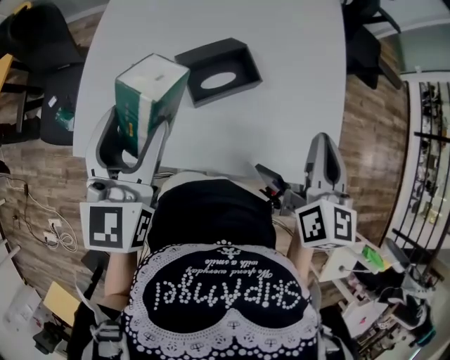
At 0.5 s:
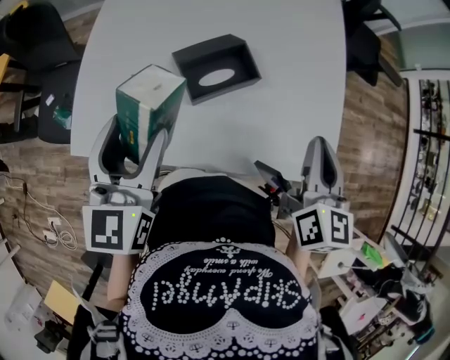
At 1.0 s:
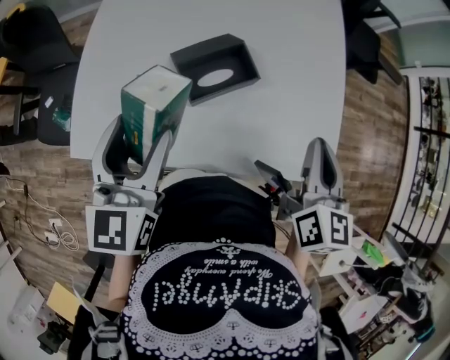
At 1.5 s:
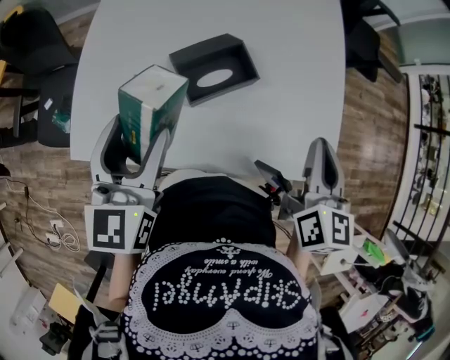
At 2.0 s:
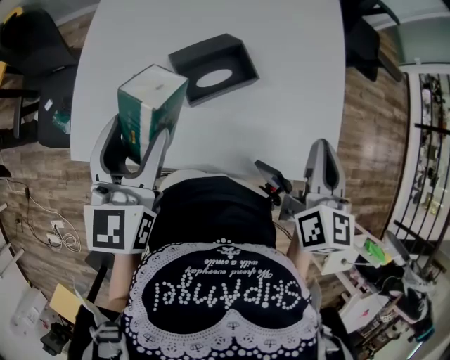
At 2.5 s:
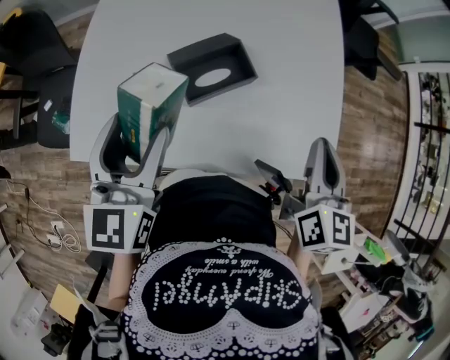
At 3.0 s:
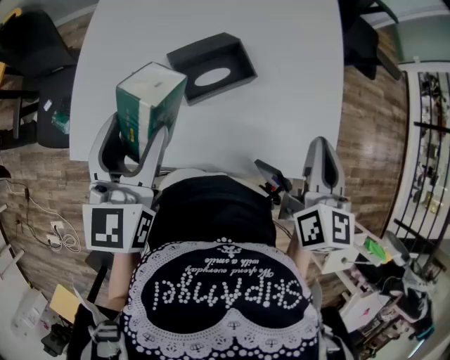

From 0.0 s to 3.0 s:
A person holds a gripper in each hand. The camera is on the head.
From 0.0 s to 1.5 s: The grippers make only small movements.
From 1.5 s to 3.0 s: Both grippers stay about where they are.

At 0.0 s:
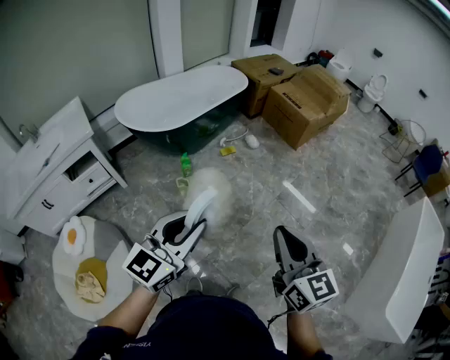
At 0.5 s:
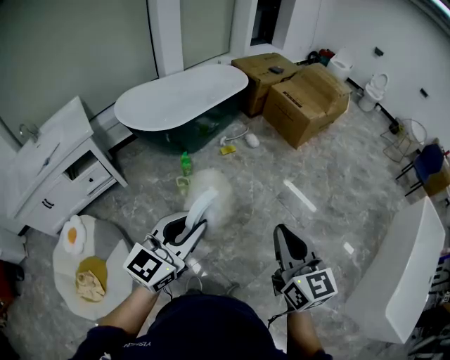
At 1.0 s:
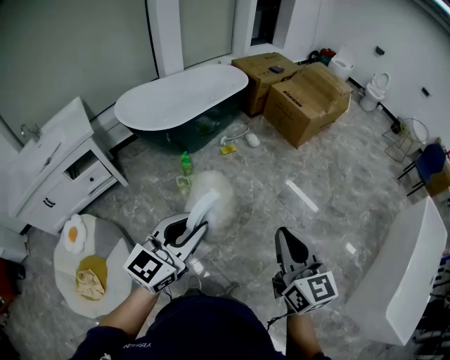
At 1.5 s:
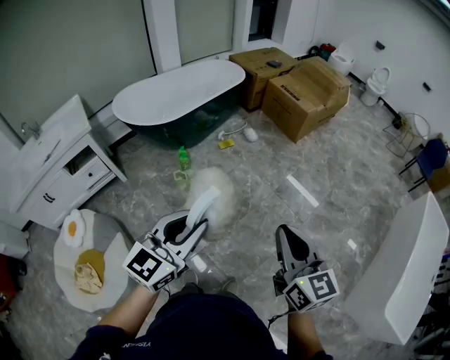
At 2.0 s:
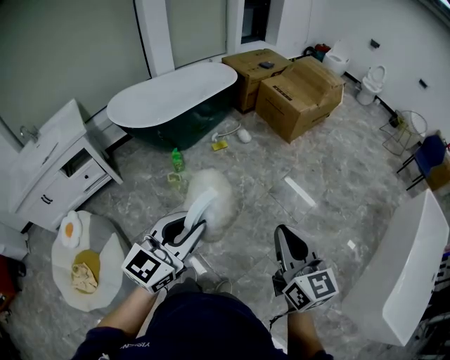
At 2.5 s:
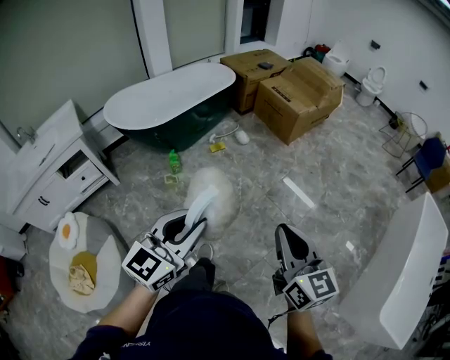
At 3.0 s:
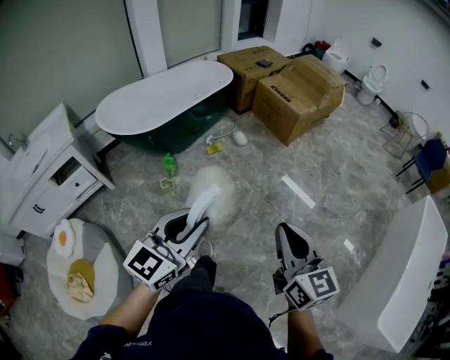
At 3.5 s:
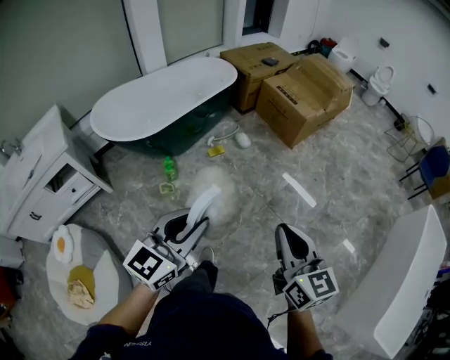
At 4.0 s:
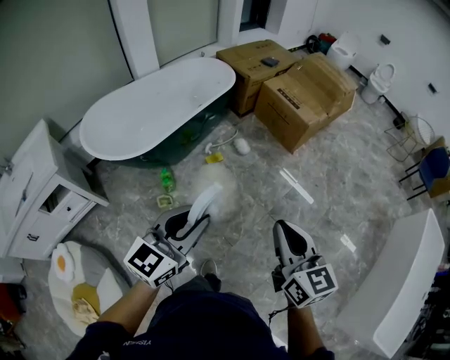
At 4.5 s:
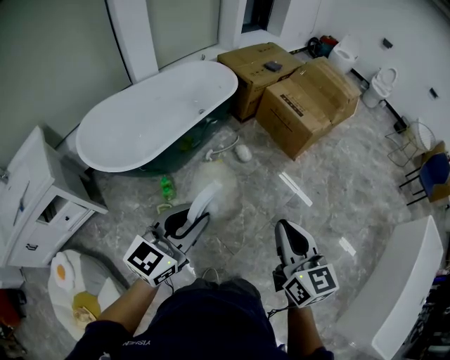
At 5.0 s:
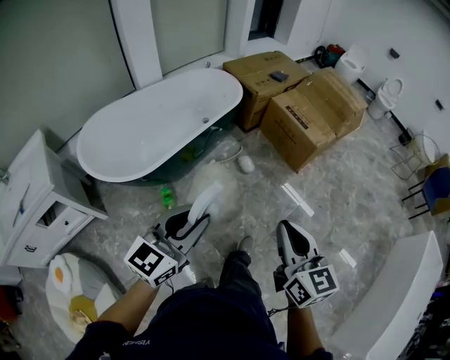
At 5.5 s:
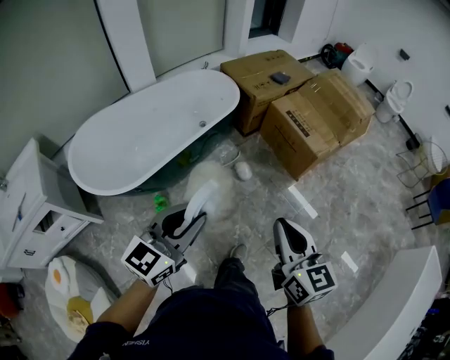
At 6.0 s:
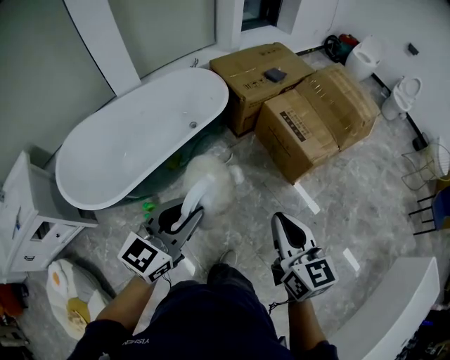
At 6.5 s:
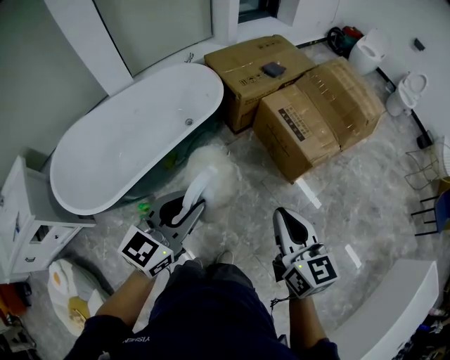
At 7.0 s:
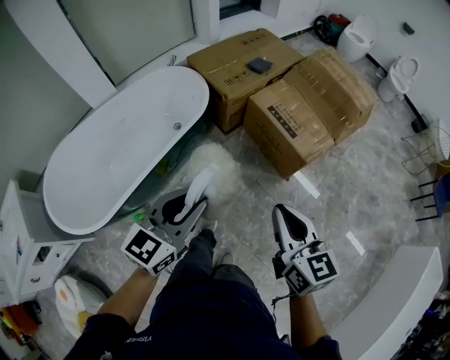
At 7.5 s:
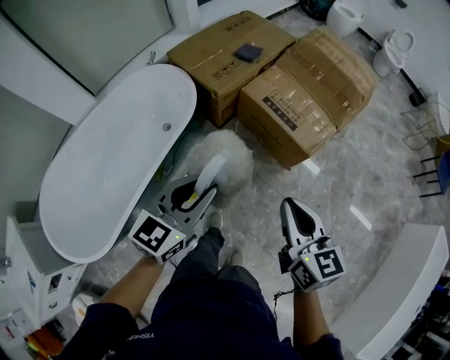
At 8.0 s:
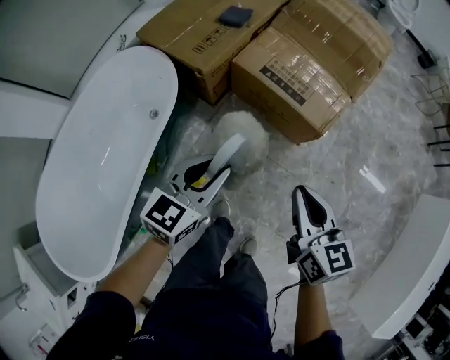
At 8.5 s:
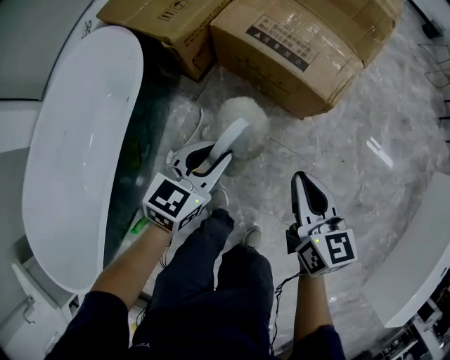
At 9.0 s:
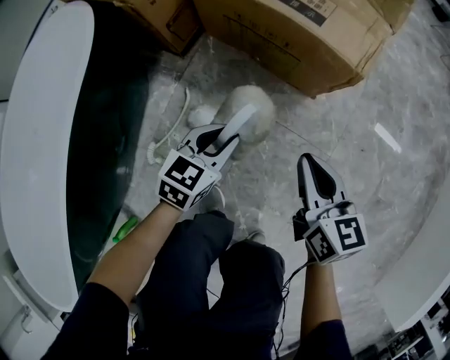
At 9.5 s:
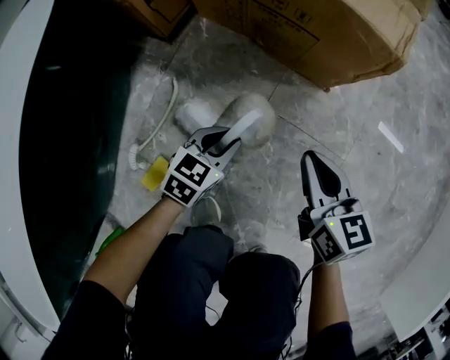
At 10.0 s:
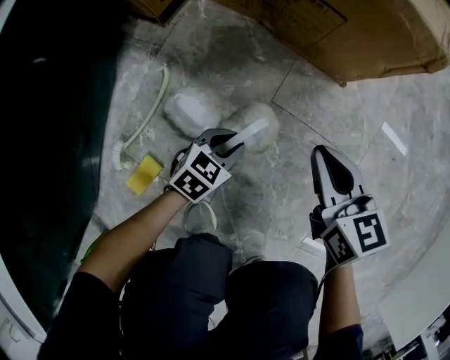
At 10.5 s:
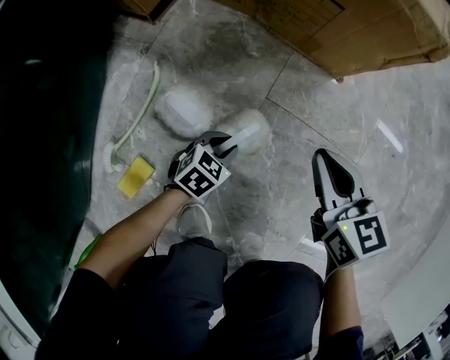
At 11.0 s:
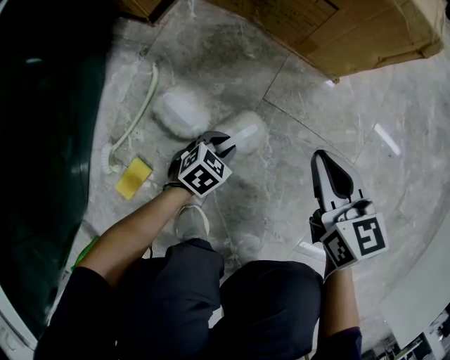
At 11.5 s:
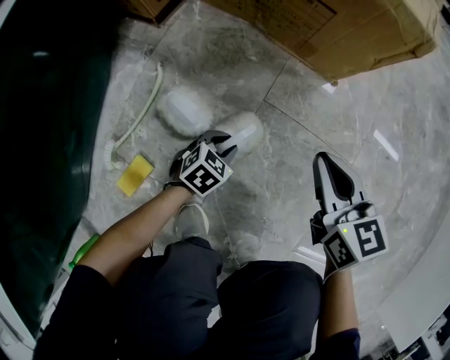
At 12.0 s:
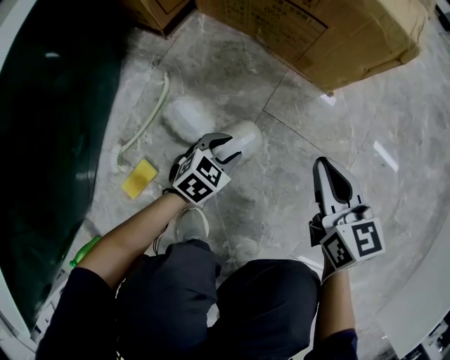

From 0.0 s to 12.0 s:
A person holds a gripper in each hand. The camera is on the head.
From 0.0 s to 2.0 s: Both grippers move to the right, roughly 15 cm.
From 2.0 s to 4.0 s: The two grippers go about 35 cm forward.
From 4.0 s to 6.0 s: Both grippers travel together forward, some 40 cm.
From 6.0 s to 8.0 s: The two grippers go about 40 cm forward and downward. The left gripper rotates approximately 30 degrees. Meanwhile the right gripper rotates some 30 degrees.
From 8.0 s to 10.0 s: The two grippers go about 70 cm downward. The left gripper swivels some 30 degrees.
From 10.0 s to 12.0 s: The left gripper moves approximately 5 cm downward and comes back.

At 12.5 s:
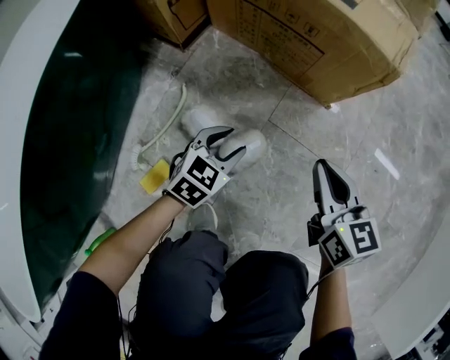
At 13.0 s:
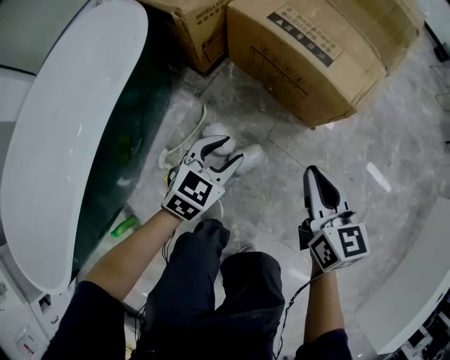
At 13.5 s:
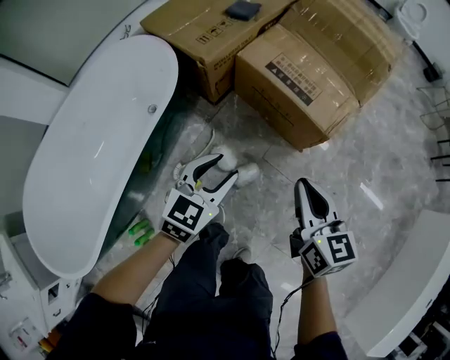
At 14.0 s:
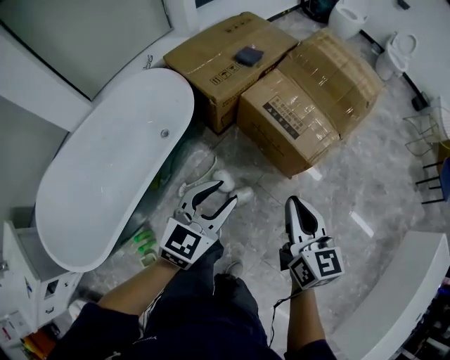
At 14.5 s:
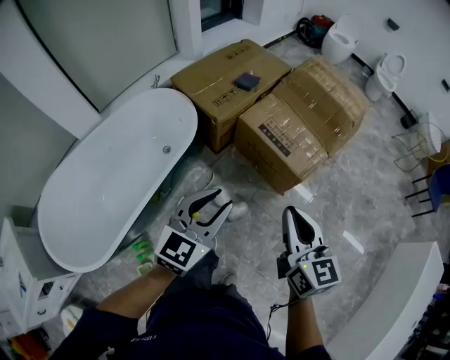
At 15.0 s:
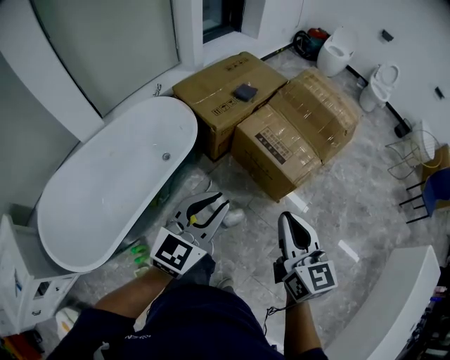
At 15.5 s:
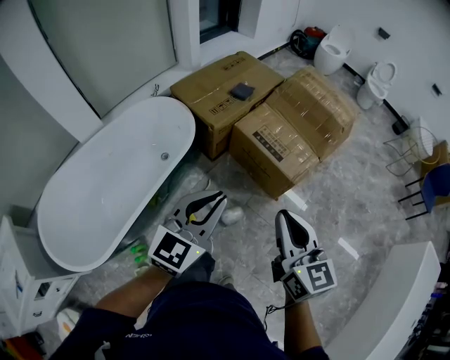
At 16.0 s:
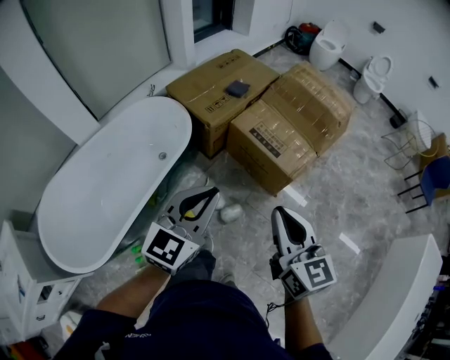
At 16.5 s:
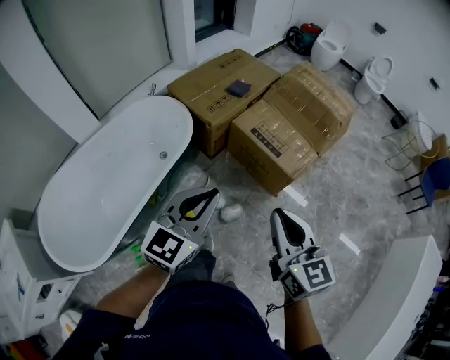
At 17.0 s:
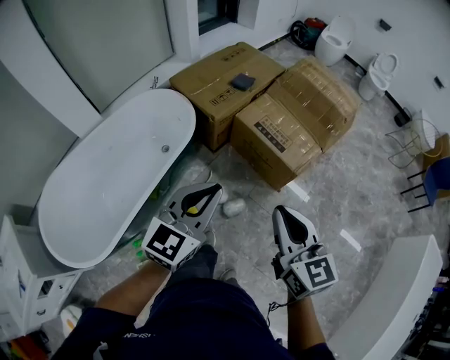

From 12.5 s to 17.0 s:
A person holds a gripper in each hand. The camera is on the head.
From 12.5 s to 14.5 s: The grippers both shift upward by some 70 cm. The left gripper swivels approximately 30 degrees.
From 14.5 s to 17.0 s: The left gripper ends up approximately 5 cm from where it was, and closes up. Meanwhile the right gripper goes roughly 5 cm backward.

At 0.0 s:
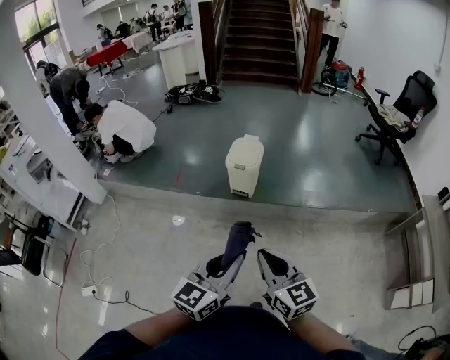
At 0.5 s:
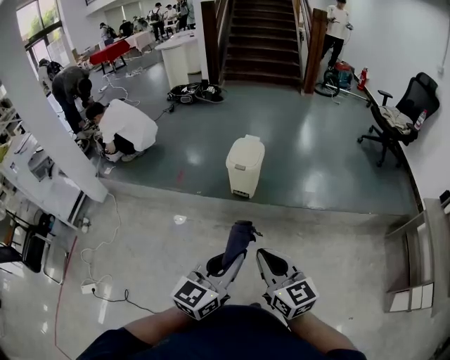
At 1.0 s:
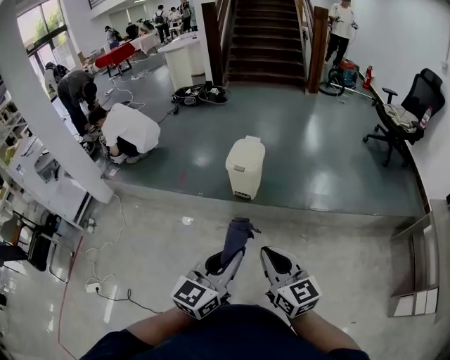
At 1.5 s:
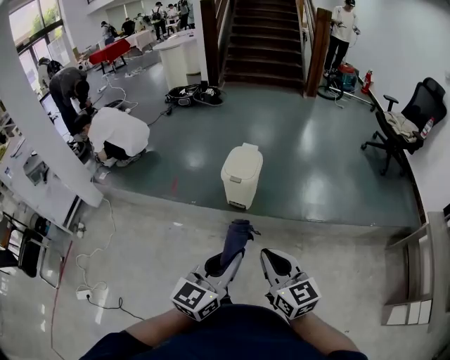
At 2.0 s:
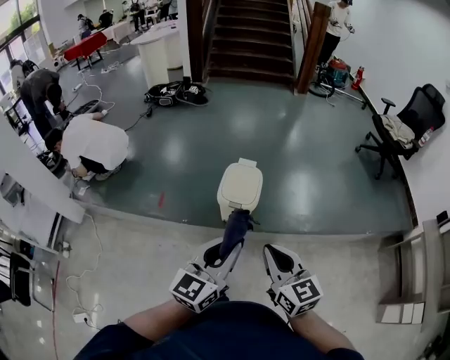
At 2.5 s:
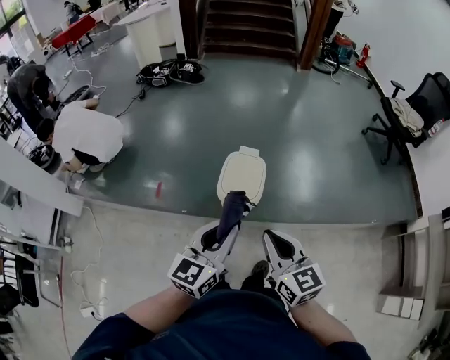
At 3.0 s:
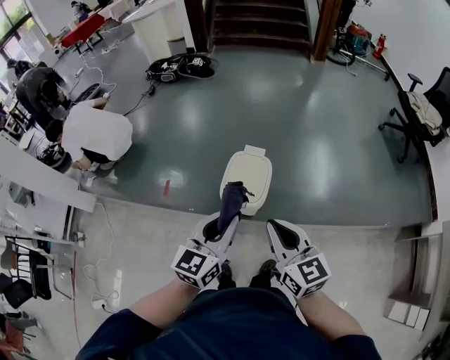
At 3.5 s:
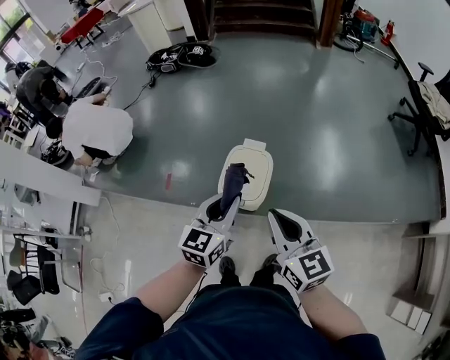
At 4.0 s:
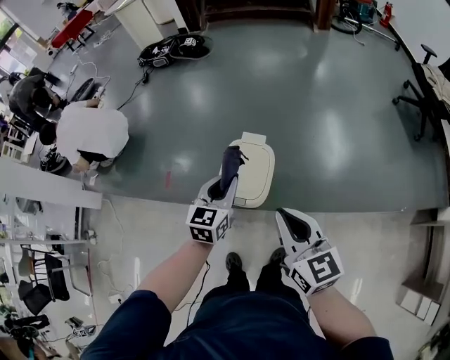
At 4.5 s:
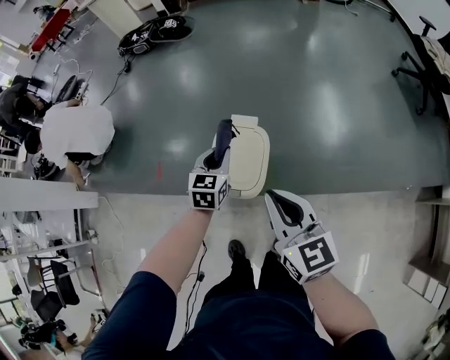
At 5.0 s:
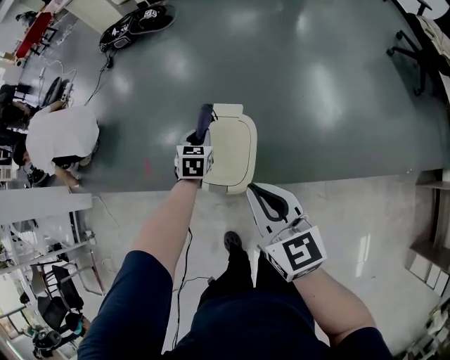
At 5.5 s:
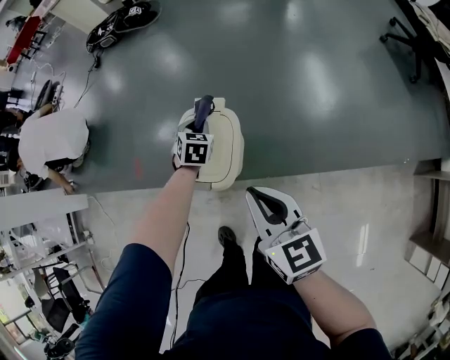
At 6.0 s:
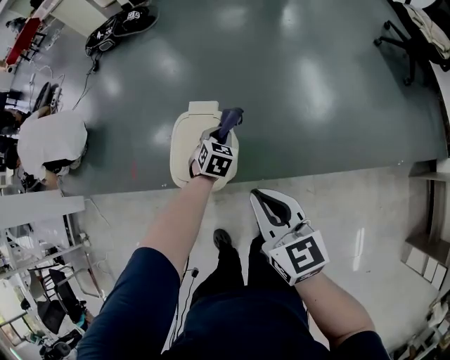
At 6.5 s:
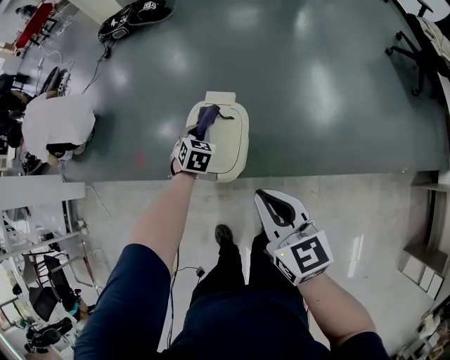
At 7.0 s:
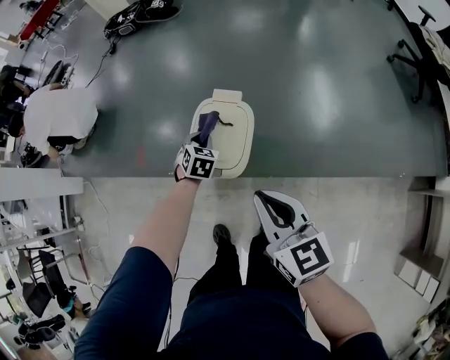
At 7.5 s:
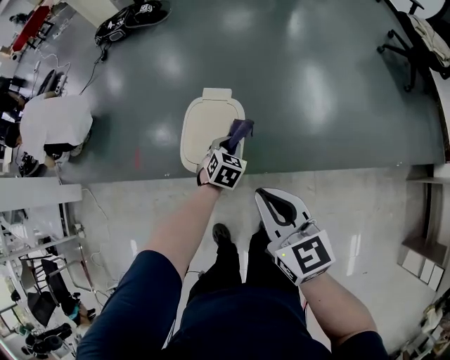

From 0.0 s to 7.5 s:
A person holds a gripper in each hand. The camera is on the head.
From 0.0 s to 2.0 s: The grippers both shift forward by roughly 35 cm.
From 2.0 s to 4.0 s: The left gripper shifts roughly 40 cm forward and downward, and changes its angle by some 30 degrees. Meanwhile the right gripper heads forward, covering approximately 25 cm.
From 4.0 s to 5.5 s: The left gripper shifts some 30 cm downward and forward, and turns by approximately 30 degrees. Meanwhile the right gripper goes roughly 10 cm downward.
From 5.5 s to 7.5 s: The left gripper moves left and right over some 15 cm, changing direction 2 times, while the right gripper heads backward, covering approximately 5 cm.
